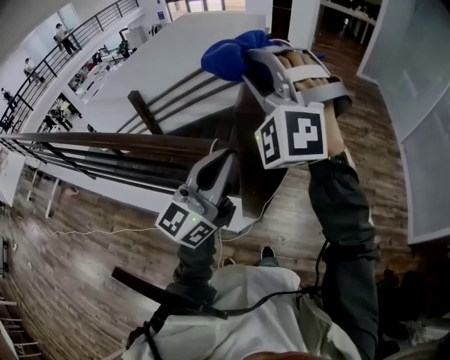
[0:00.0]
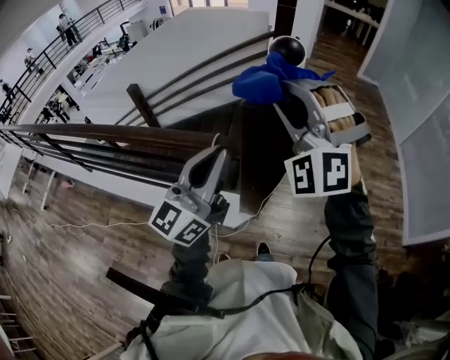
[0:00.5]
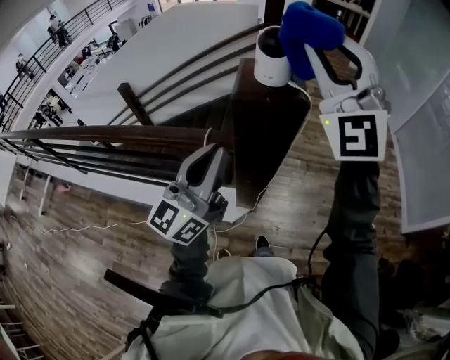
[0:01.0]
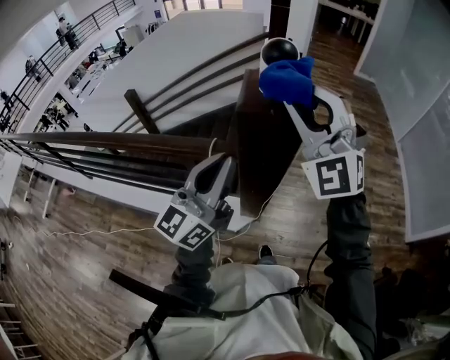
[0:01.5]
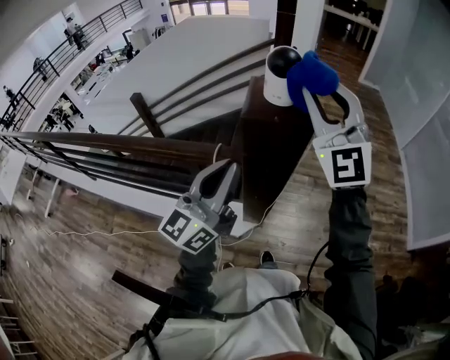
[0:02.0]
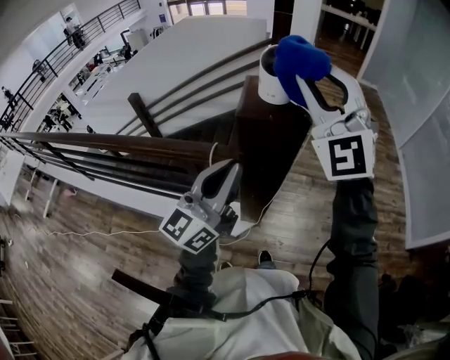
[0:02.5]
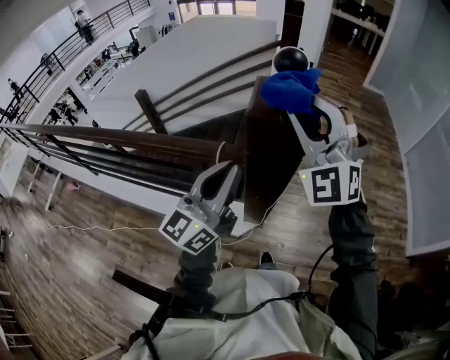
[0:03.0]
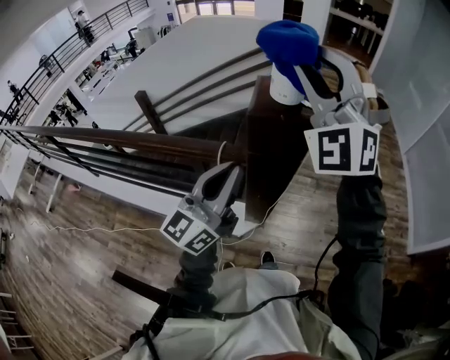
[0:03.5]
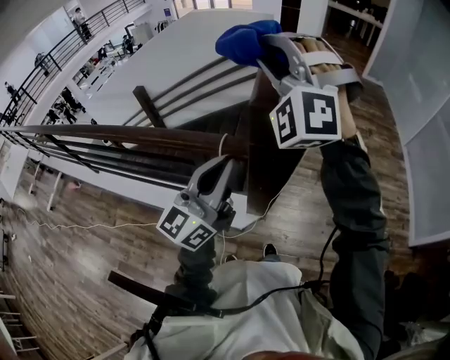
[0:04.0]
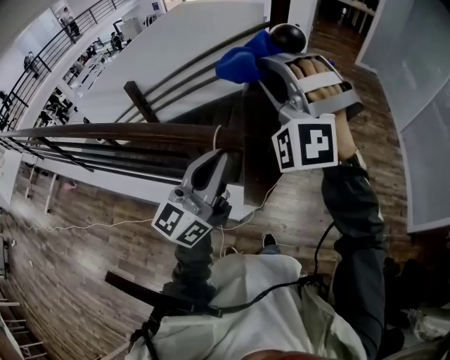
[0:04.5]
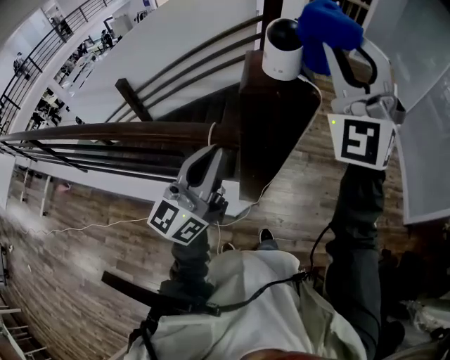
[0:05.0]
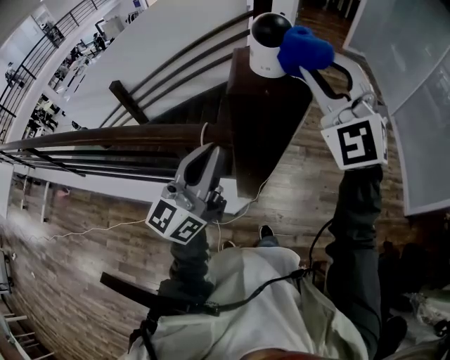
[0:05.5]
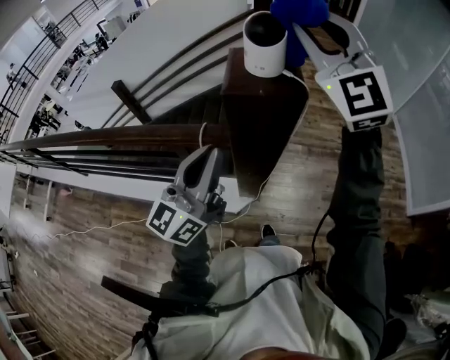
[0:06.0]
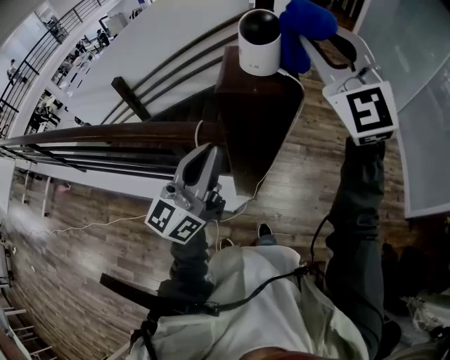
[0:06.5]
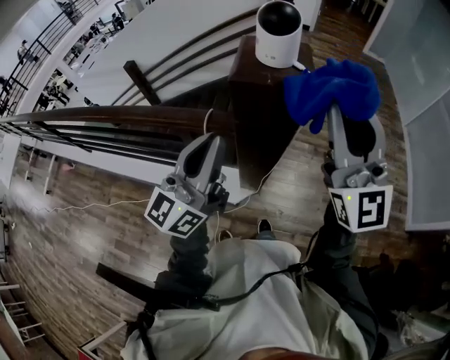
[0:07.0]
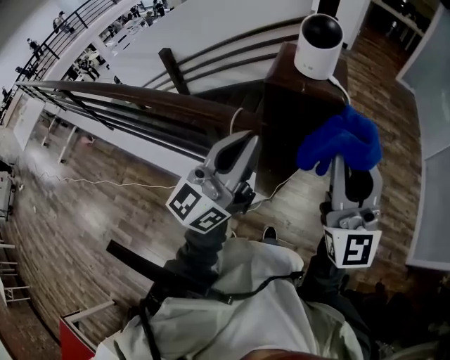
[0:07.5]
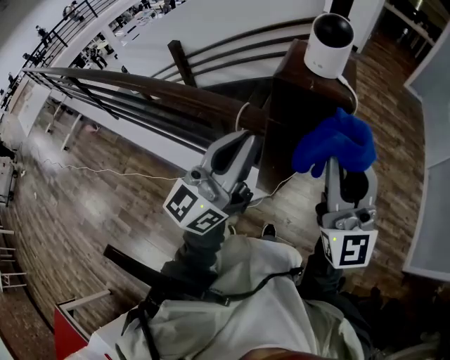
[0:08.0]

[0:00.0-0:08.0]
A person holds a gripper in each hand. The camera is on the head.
0:00.0 to 0:02.0: The right gripper shifts roughly 10 cm to the right, and twists some 40 degrees clockwise, seen from behind.
0:02.0 to 0:04.0: The right gripper is displaced to the left by about 10 cm, and rolls counterclockwise, seen from behind, by approximately 40 degrees.
0:04.0 to 0:06.0: The right gripper shifts some 10 cm to the right, and rotates around the line of its fingers by some 40 degrees, clockwise from behind.
0:06.0 to 0:08.0: The right gripper is displaced backward and downward by roughly 20 cm, and swivels some 30 degrees.

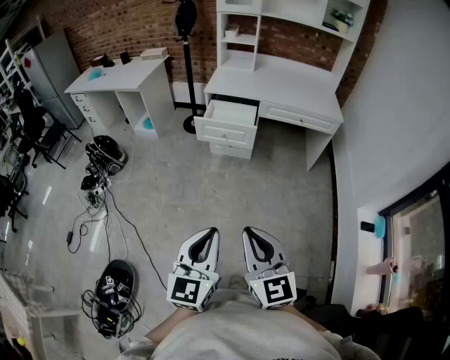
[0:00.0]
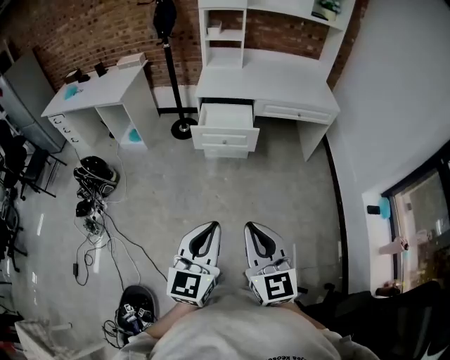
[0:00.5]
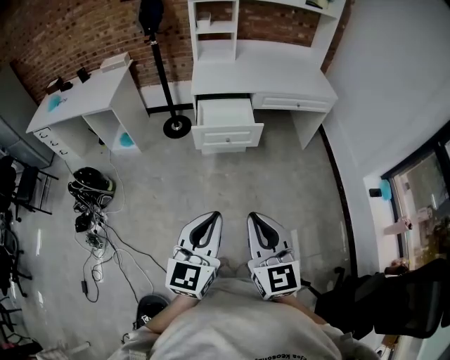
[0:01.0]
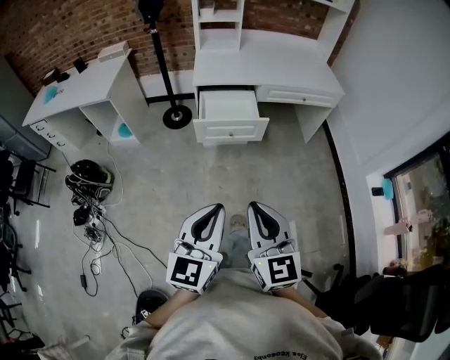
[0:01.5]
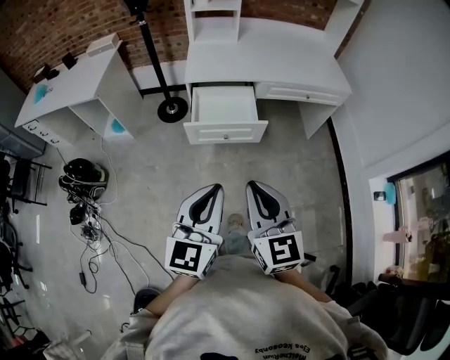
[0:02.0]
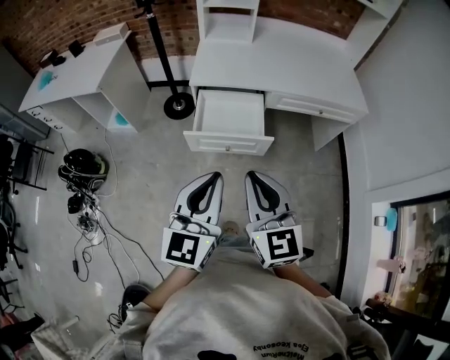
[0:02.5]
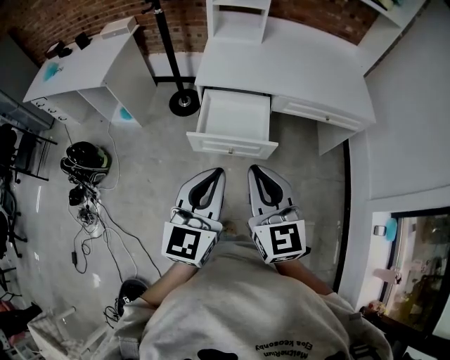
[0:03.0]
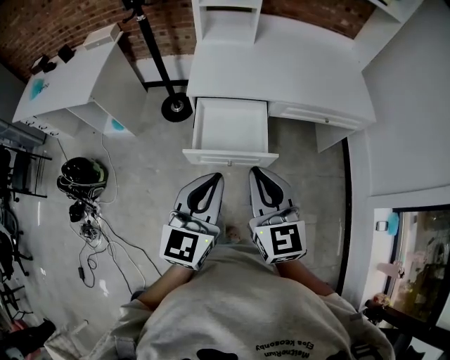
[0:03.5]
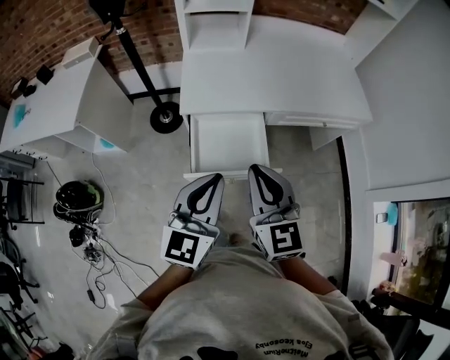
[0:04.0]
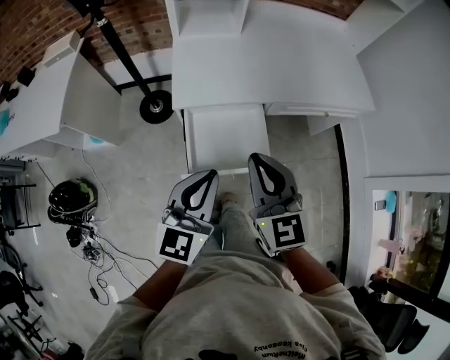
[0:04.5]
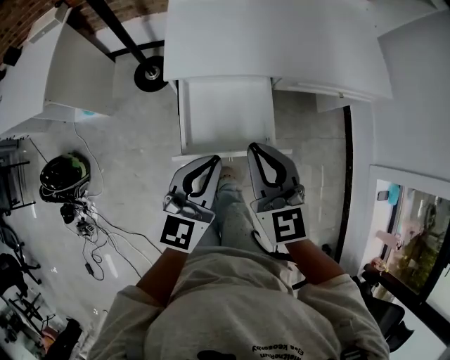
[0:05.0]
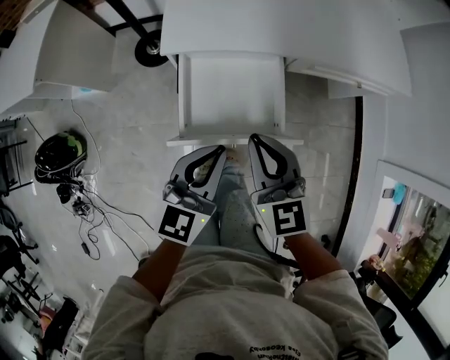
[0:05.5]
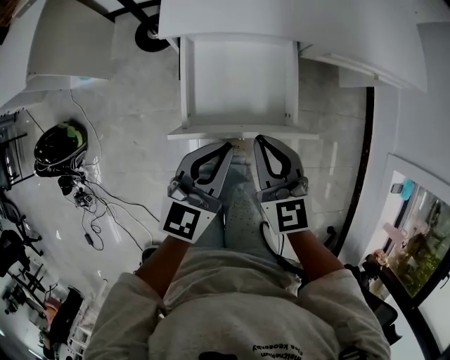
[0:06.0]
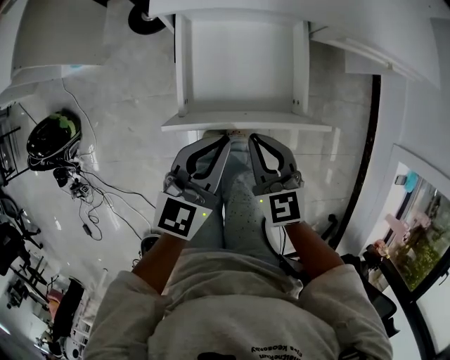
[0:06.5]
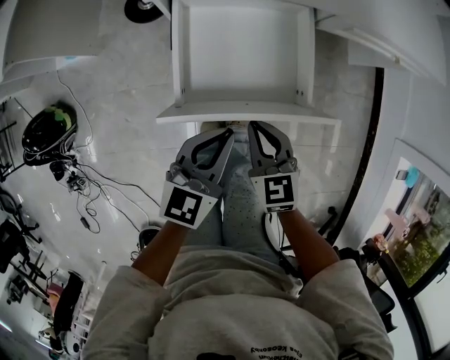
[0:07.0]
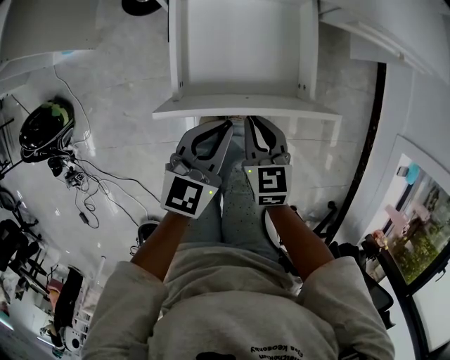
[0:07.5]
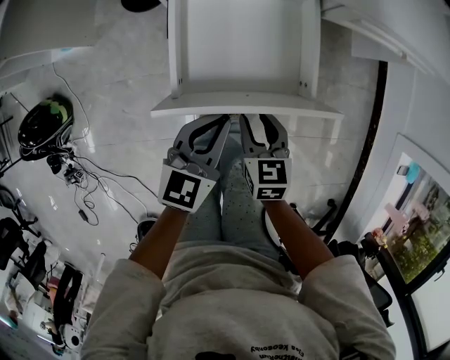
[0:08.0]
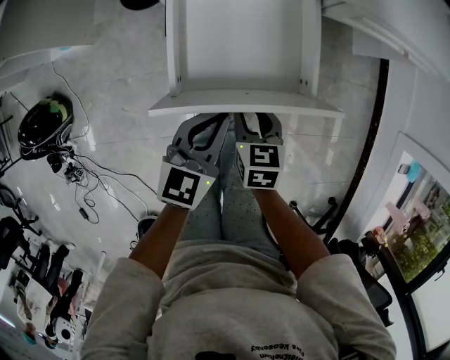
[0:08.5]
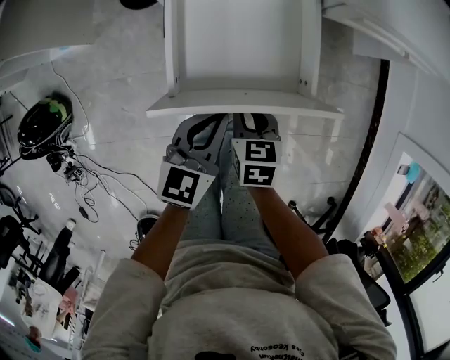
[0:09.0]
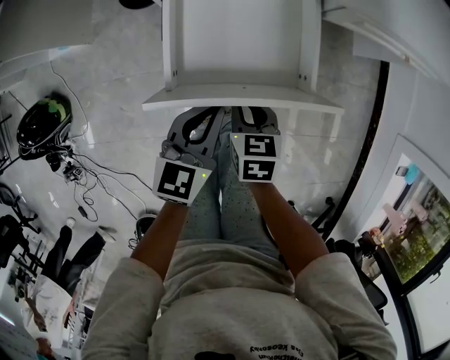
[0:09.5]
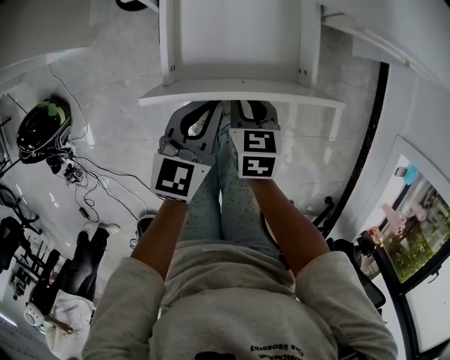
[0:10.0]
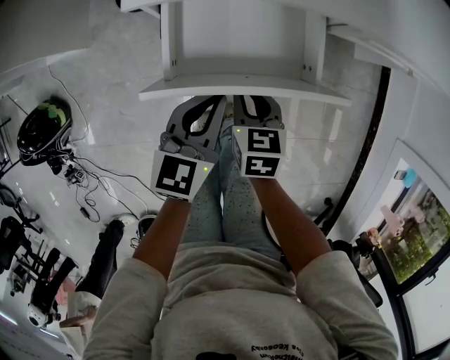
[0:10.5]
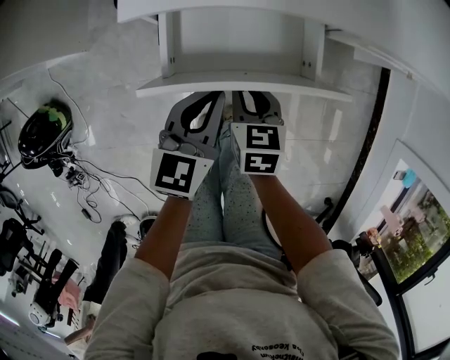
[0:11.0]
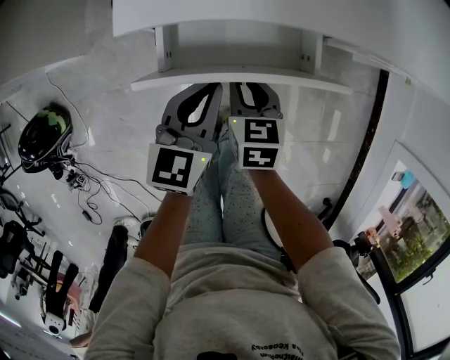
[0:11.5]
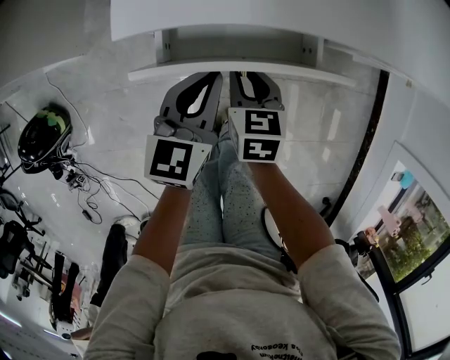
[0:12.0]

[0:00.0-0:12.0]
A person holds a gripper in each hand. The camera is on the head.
0:00.0 to 0:02.0: The pair of grippers is taken forward and to the left, roughly 40 cm.
0:02.0 to 0:04.0: Both grippers move forward, roughly 35 cm.
0:04.0 to 0:06.0: The two grippers go about 25 cm downward.
0:06.0 to 0:08.0: The left gripper heads downward, covering some 15 cm, while the right gripper goes roughly 20 cm downward, turns by some 30 degrees, and opens its fingers.
0:08.0 to 0:10.0: Both grippers move forward, about 10 cm.
0:10.0 to 0:12.0: Both grippers move forward, some 15 cm.

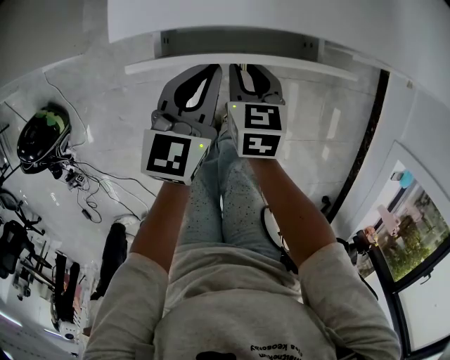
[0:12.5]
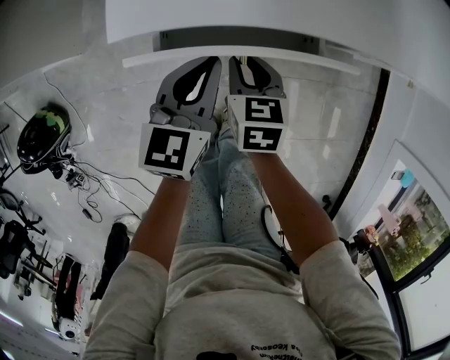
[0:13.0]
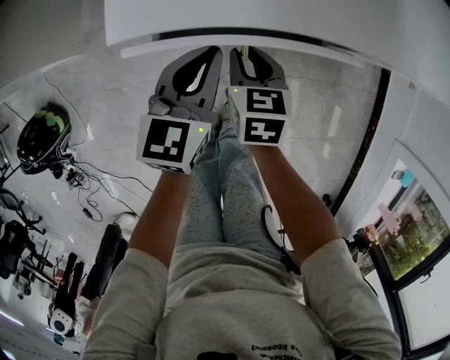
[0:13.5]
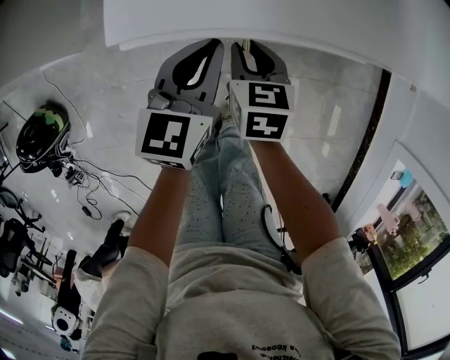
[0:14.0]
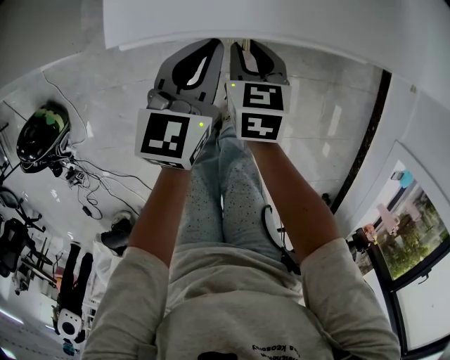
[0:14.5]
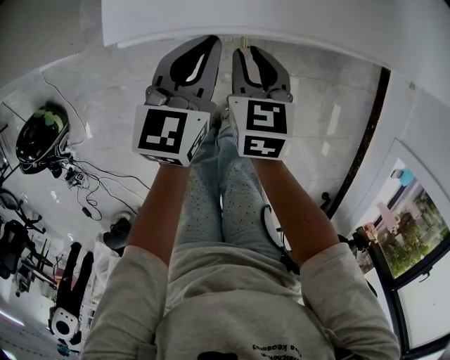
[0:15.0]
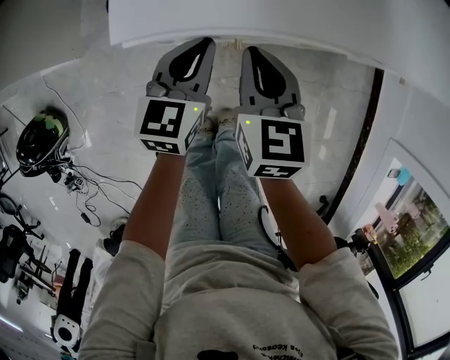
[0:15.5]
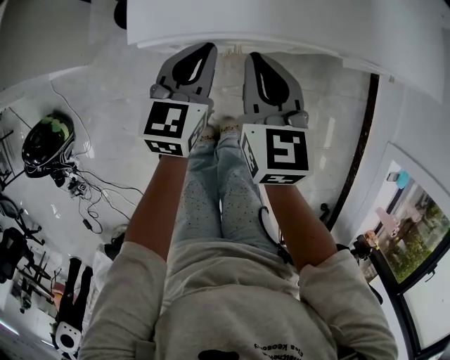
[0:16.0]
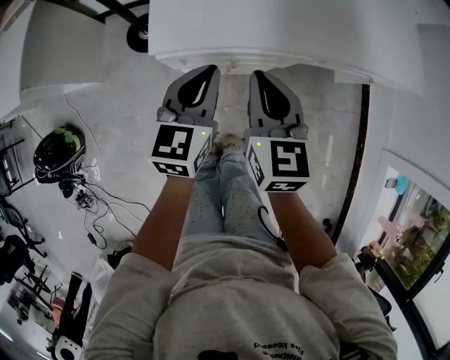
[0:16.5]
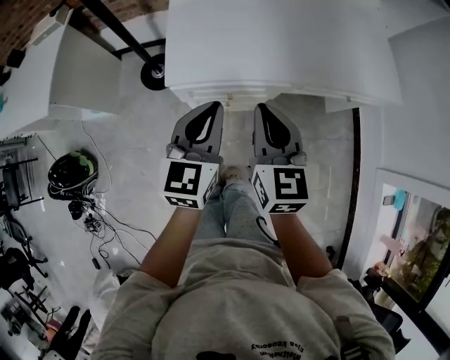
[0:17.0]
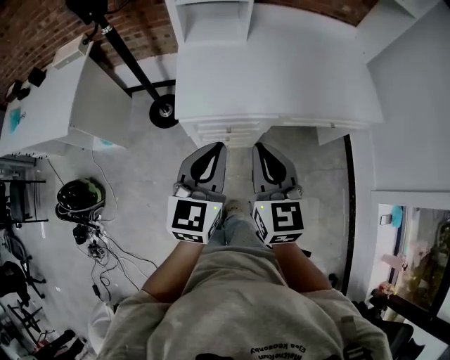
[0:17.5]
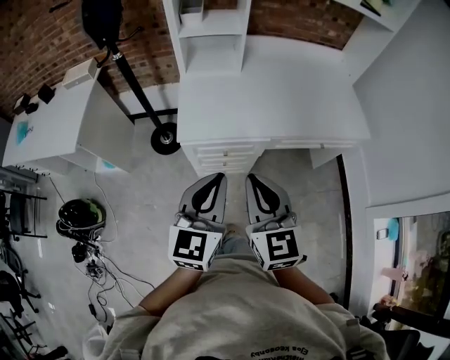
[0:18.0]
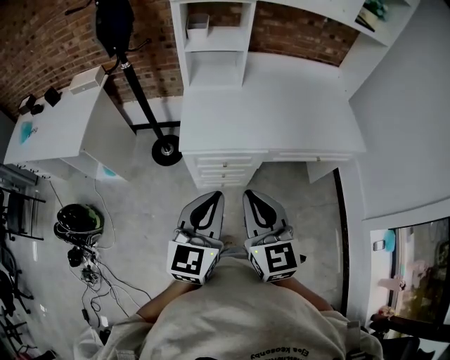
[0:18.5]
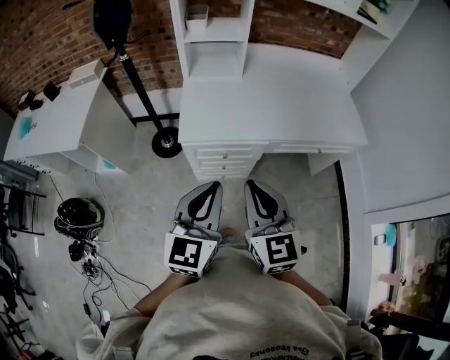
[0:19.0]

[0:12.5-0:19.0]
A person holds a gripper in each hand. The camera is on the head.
0:12.5 to 0:14.5: The grippers make only small movements.
0:14.5 to 0:17.0: The left gripper moves upward and backward, approximately 30 cm, while the right gripper goes roughly 35 cm upward, and rotates roughly 30 degrees.
0:17.0 to 0:19.0: Both grippers travel together backward and upward, about 20 cm.
